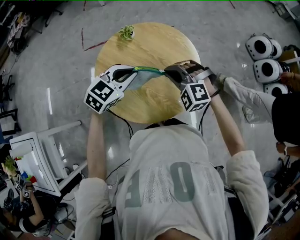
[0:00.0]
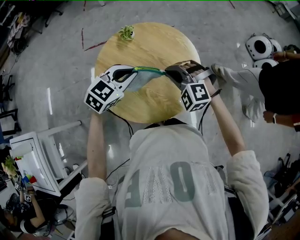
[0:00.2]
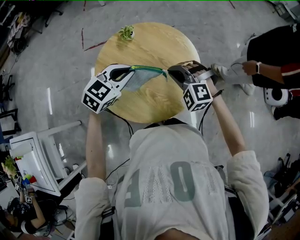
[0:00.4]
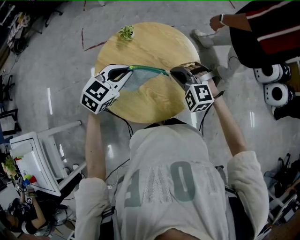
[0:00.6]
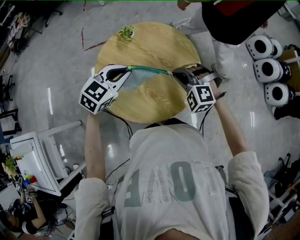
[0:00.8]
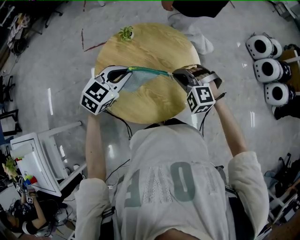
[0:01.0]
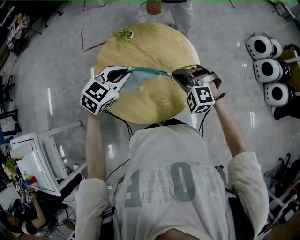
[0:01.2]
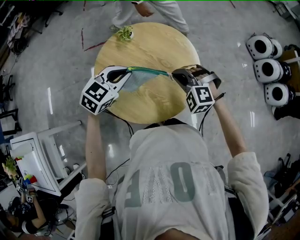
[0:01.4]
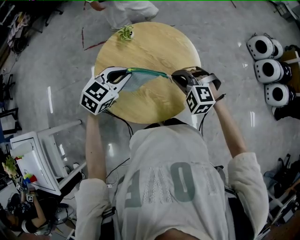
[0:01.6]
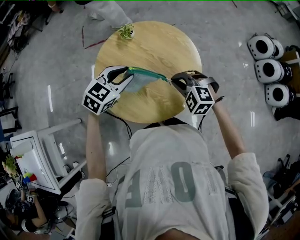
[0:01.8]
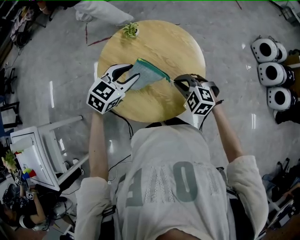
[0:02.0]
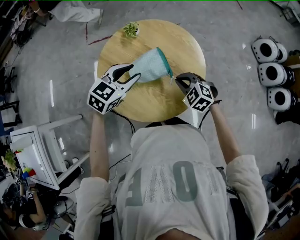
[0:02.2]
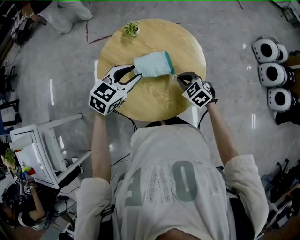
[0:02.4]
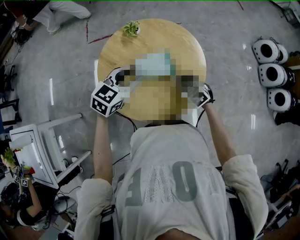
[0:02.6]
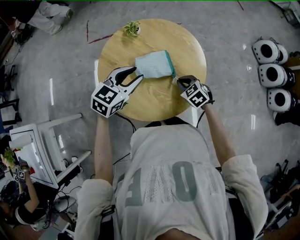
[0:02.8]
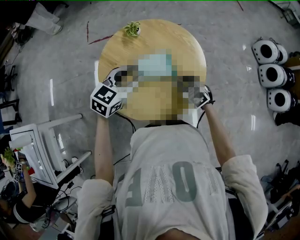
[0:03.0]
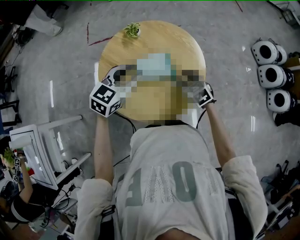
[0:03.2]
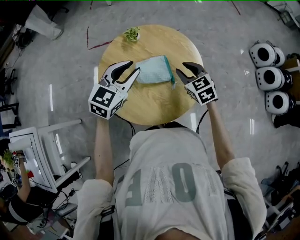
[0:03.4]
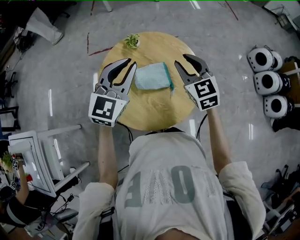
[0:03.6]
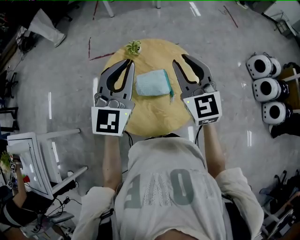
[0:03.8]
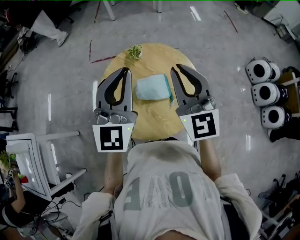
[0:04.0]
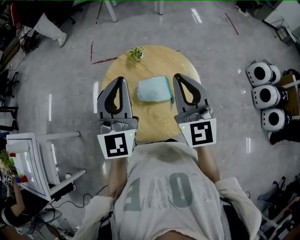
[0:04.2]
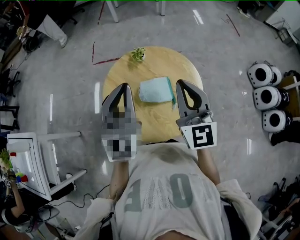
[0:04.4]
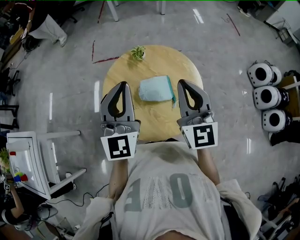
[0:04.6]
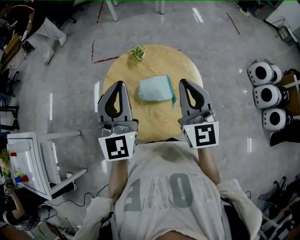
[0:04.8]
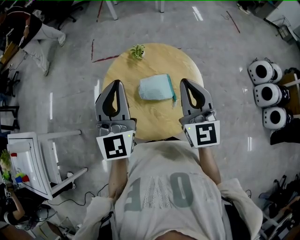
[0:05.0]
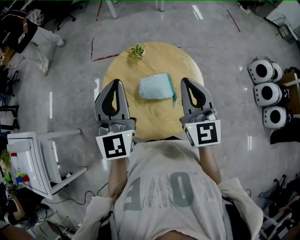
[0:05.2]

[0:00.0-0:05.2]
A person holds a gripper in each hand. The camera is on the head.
0:00.0 to 0:01.8: The right gripper moves roughly 5 cm.
0:01.8 to 0:03.4: The left gripper goes some 5 cm upward; the right gripper heads forward, covering approximately 5 cm, reaches about 10 cm downward, then returns, rotates around the line of its fingers by roughly 40 degrees, clockwise from behind, and opens its fingers.
0:03.4 to 0:05.2: The two grippers go some 15 cm upward. The left gripper points its fingers approximately 30 degrees further upward, and closes. Meanwhile the right gripper angles its fingers upward, by about 30 degrees, and closes.

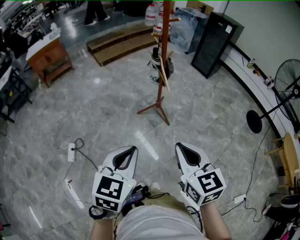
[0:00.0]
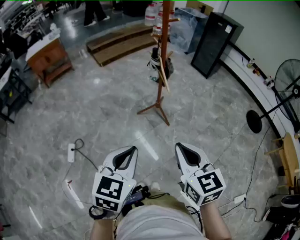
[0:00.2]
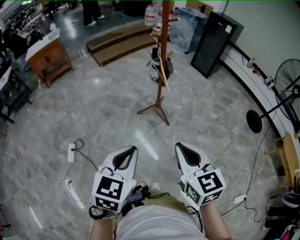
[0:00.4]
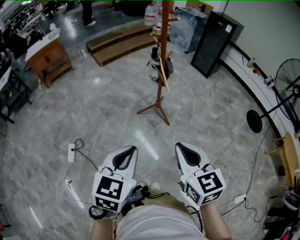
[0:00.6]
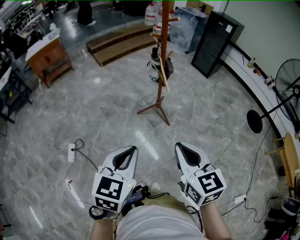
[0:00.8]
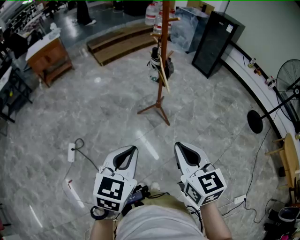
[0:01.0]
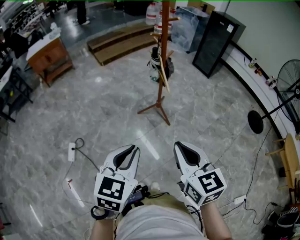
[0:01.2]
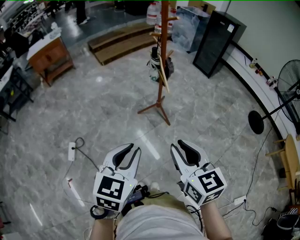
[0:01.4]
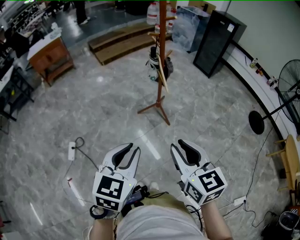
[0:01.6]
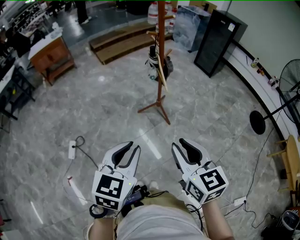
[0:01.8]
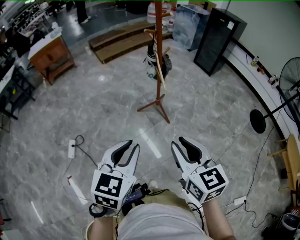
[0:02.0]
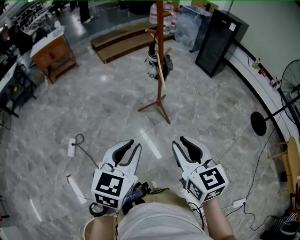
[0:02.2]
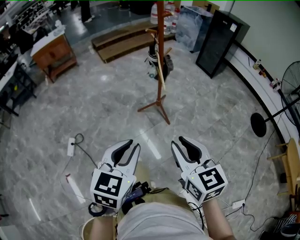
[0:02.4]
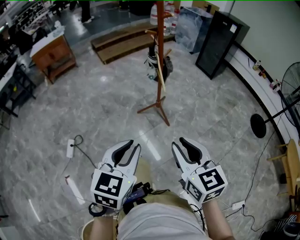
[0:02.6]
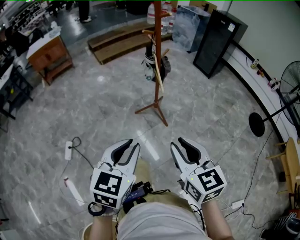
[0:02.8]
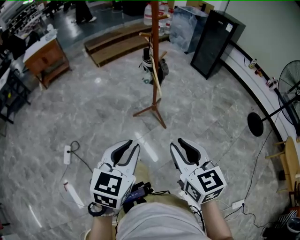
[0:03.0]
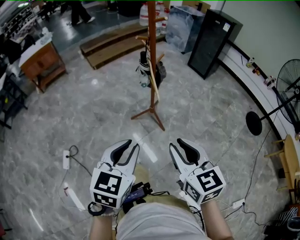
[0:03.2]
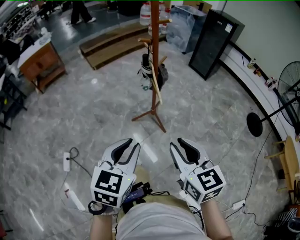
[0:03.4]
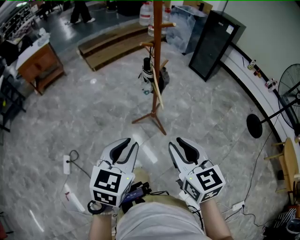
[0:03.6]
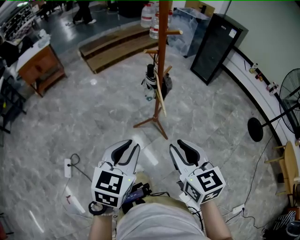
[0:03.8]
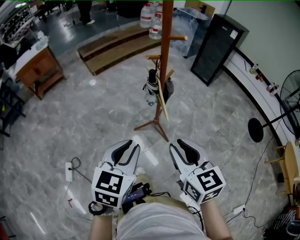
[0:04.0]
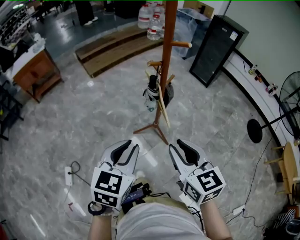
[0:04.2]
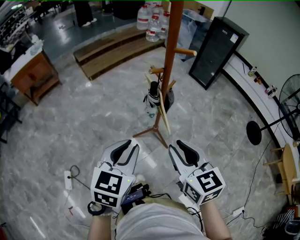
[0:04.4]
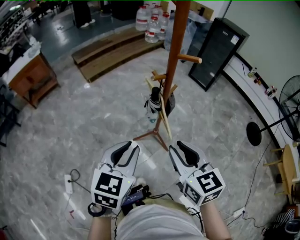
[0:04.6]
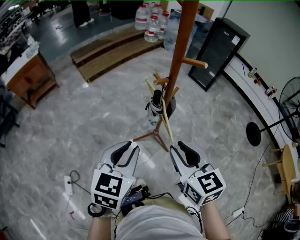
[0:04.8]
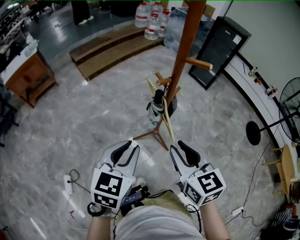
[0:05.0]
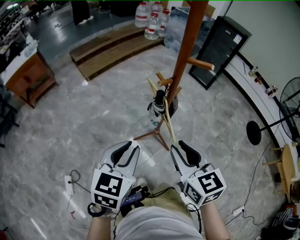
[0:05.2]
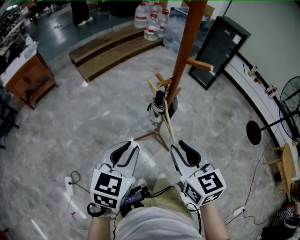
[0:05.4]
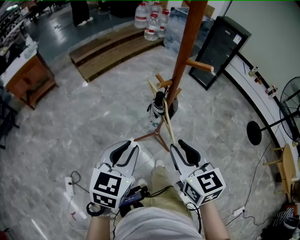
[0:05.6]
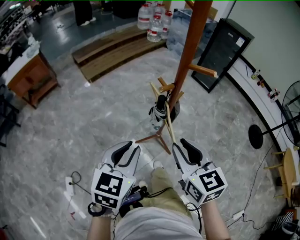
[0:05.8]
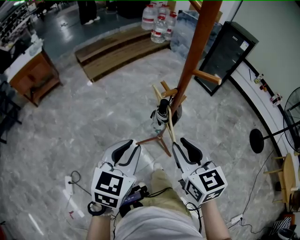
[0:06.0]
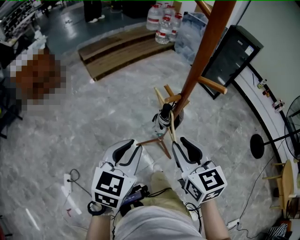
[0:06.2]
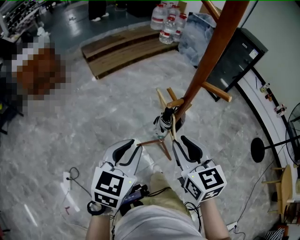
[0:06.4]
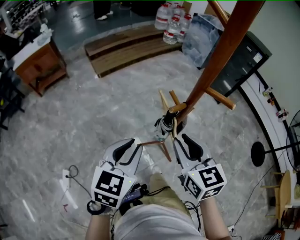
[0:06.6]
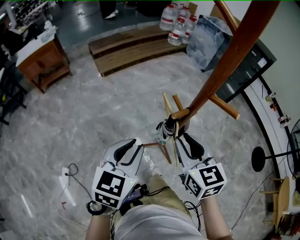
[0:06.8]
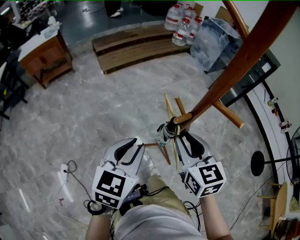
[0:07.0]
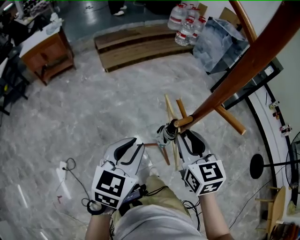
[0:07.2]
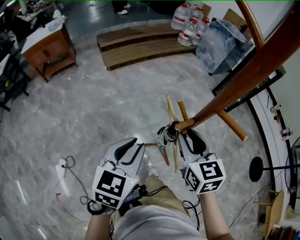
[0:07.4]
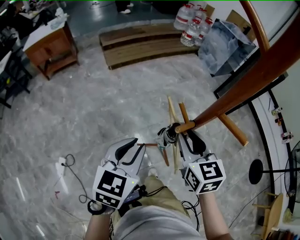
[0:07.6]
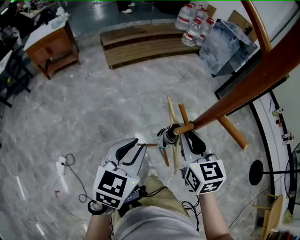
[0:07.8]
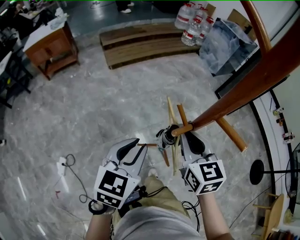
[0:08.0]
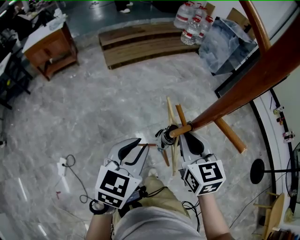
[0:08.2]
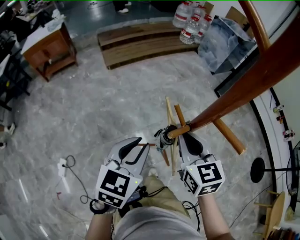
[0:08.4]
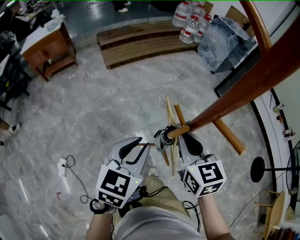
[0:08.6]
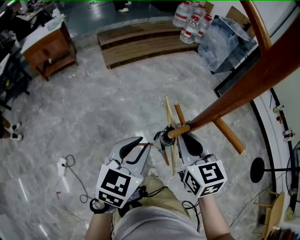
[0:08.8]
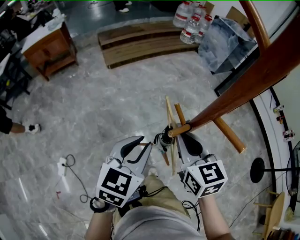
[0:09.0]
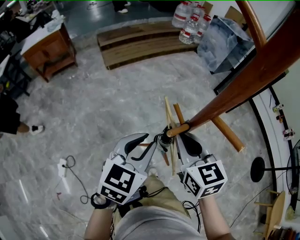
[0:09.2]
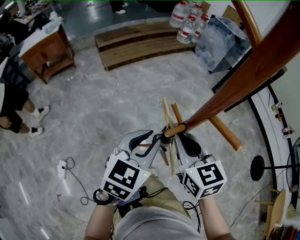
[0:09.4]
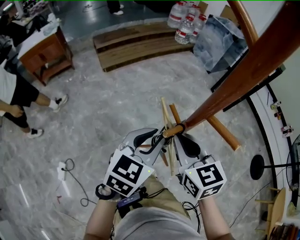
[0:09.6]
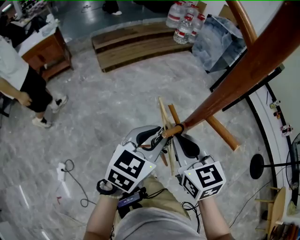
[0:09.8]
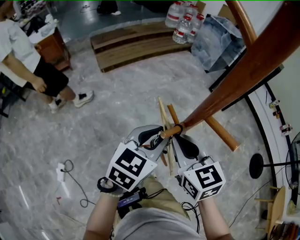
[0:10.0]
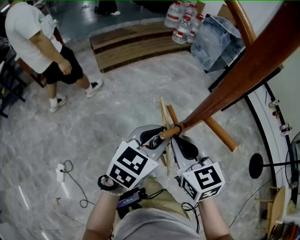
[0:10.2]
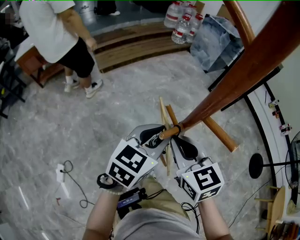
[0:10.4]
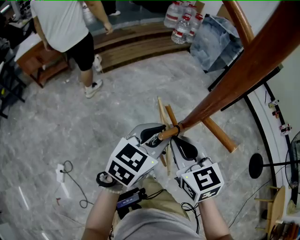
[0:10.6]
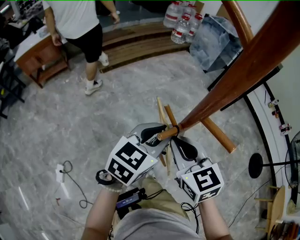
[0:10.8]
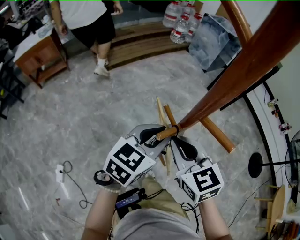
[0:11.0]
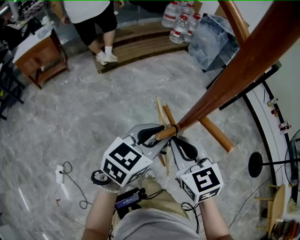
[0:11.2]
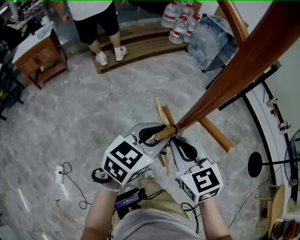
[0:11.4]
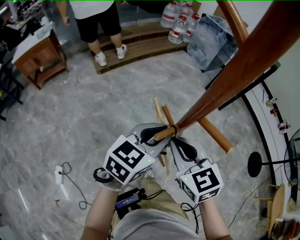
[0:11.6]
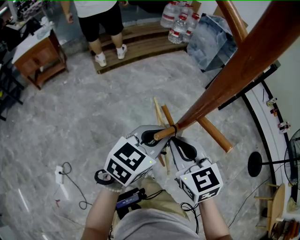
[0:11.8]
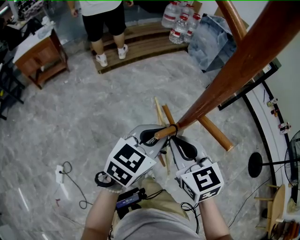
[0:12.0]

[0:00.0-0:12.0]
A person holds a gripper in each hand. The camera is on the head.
0:00.0 to 0:01.6: The right gripper opens up.
0:01.6 to 0:03.0: The left gripper ends up about 5 cm from where it was. The right gripper ends up roughly 5 cm from where it was.
0:03.0 to 0:04.4: The two grippers go approximately 25 cm forward.
0:04.4 to 0:06.0: Both grippers travel together forward, approximately 10 cm.
0:06.0 to 0:07.6: The left gripper is displaced forward by about 10 cm. The right gripper goes roughly 15 cm forward.
0:07.6 to 0:09.0: The right gripper closes.
0:09.0 to 0:10.4: The left gripper shifts approximately 10 cm to the right and forward.
0:10.4 to 0:12.0: The grippers make only small movements.

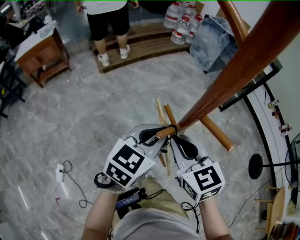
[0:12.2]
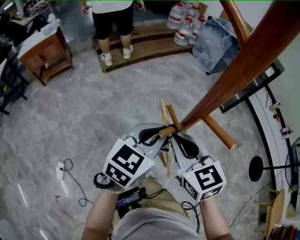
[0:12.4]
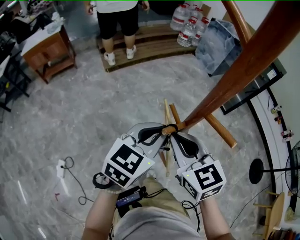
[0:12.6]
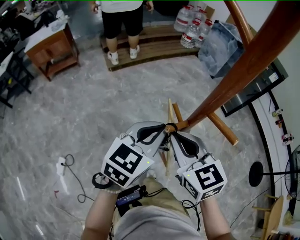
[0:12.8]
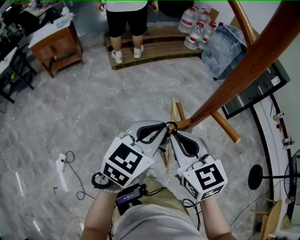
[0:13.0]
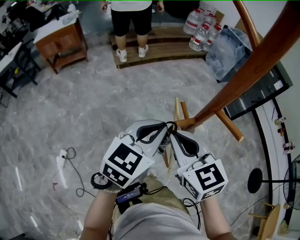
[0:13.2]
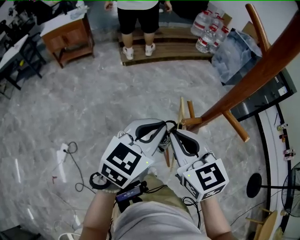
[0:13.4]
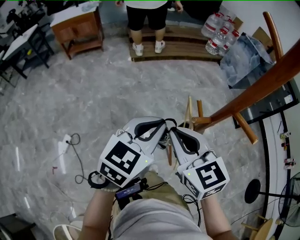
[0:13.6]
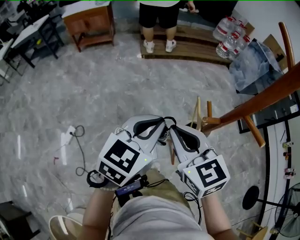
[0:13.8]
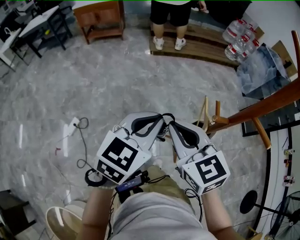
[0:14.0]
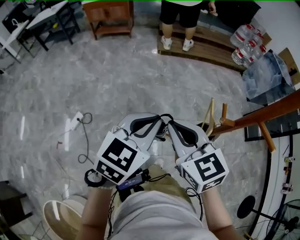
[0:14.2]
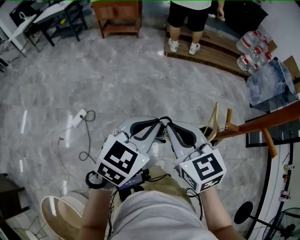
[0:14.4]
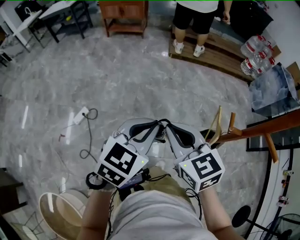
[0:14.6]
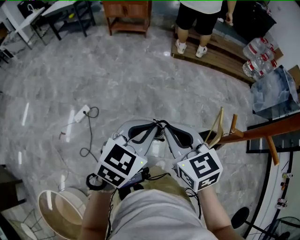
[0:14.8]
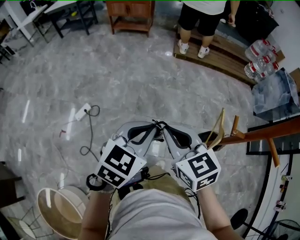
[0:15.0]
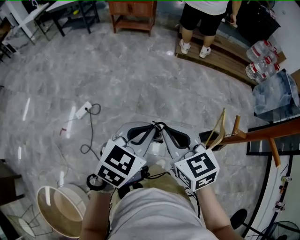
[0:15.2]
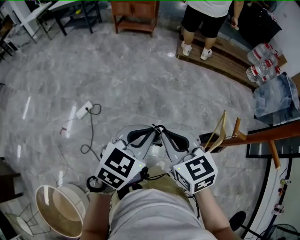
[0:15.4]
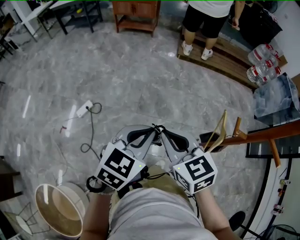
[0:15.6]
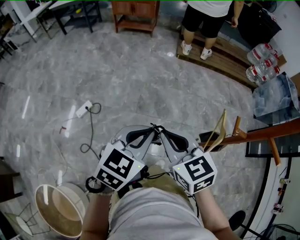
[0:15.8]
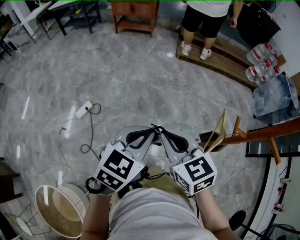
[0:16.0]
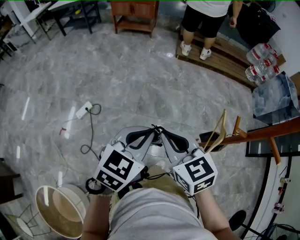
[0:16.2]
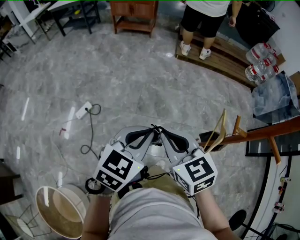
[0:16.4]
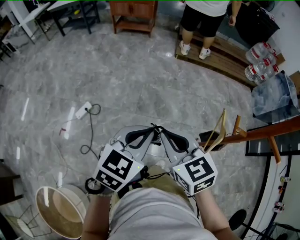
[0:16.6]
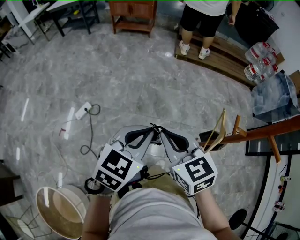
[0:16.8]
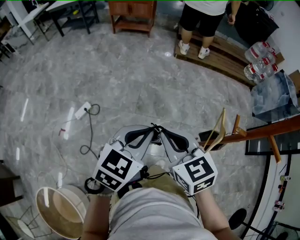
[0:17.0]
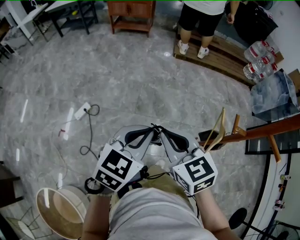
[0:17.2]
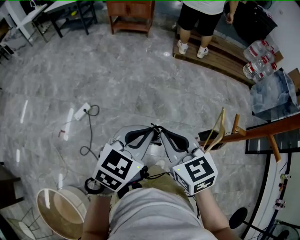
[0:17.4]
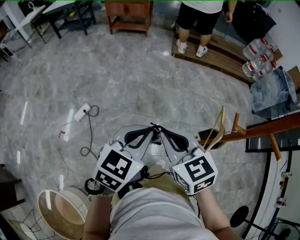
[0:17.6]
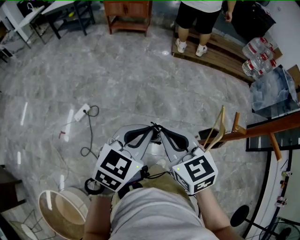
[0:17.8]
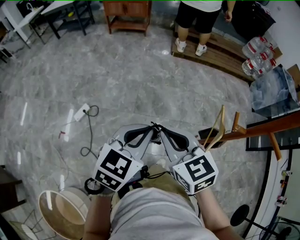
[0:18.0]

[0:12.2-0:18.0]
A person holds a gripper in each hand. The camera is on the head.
0:12.2 to 0:13.6: Both grippers travel together to the left, approximately 10 cm.
0:13.6 to 0:15.0: Both grippers move to the left, roughly 15 cm. The right gripper rotates about 20 degrees. The left gripper swivels roughly 20 degrees.
0:15.0 to 0:16.6: The grippers make only small movements.
0:16.6 to 0:18.0: Both grippers stay put.

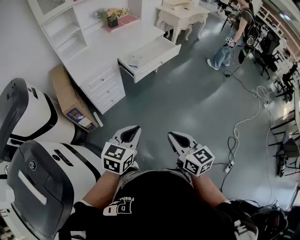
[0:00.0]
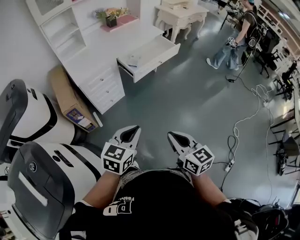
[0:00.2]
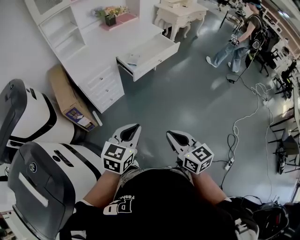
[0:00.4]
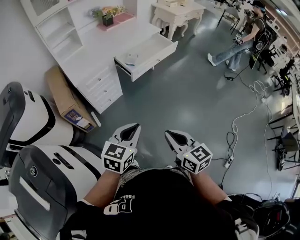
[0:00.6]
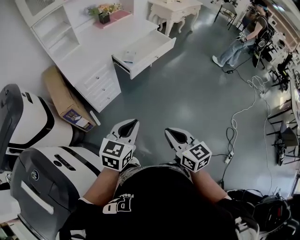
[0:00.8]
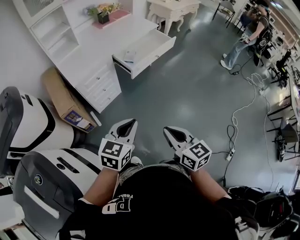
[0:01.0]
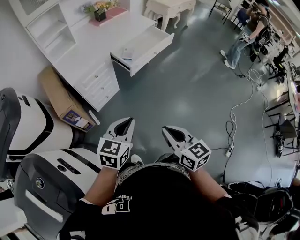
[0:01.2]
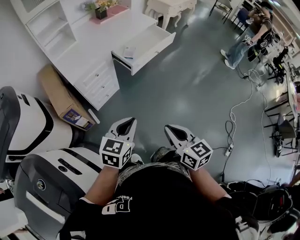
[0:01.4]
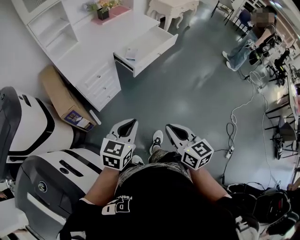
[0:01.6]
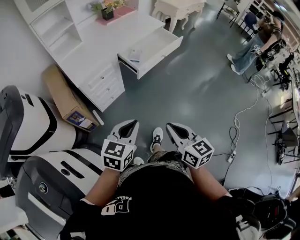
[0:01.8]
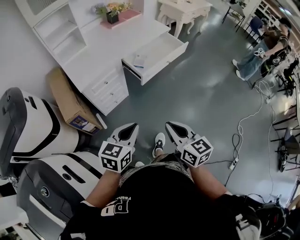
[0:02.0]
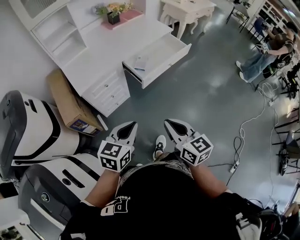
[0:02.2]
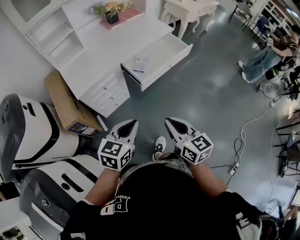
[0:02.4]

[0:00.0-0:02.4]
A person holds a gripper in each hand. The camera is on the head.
0:00.0 to 0:01.2: Both grippers move to the left, approximately 5 cm.
0:01.2 to 0:02.4: The two grippers go approximately 20 cm forward.
